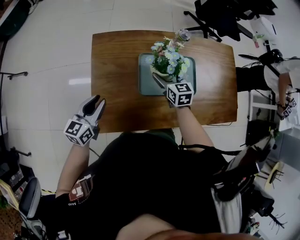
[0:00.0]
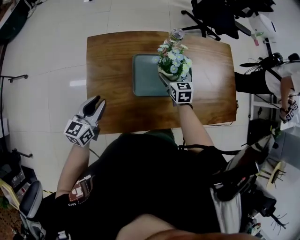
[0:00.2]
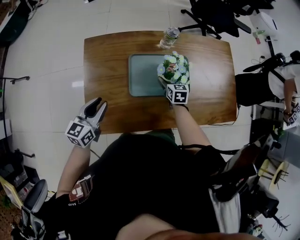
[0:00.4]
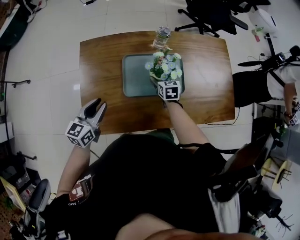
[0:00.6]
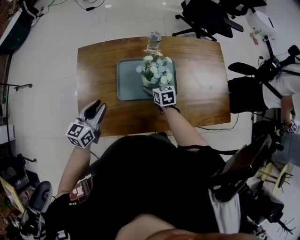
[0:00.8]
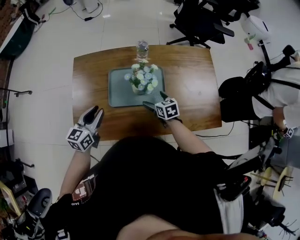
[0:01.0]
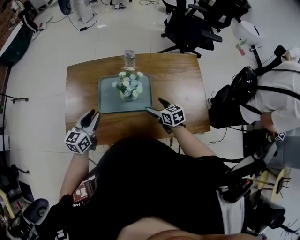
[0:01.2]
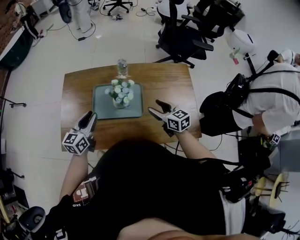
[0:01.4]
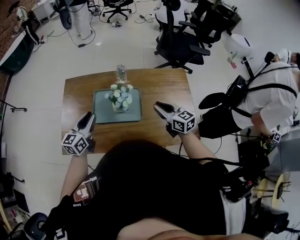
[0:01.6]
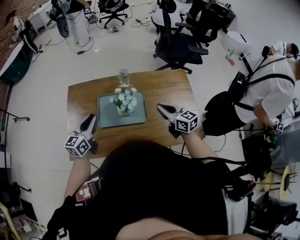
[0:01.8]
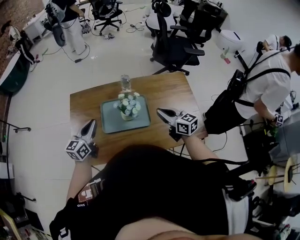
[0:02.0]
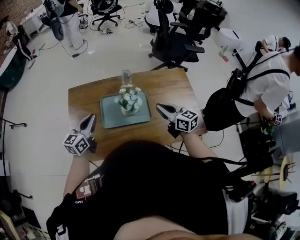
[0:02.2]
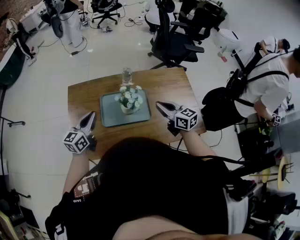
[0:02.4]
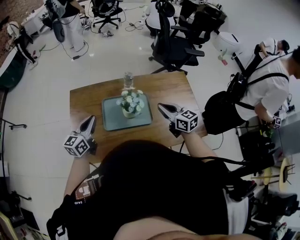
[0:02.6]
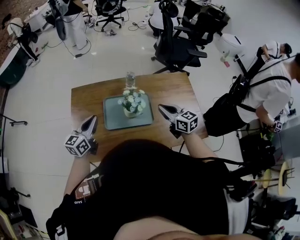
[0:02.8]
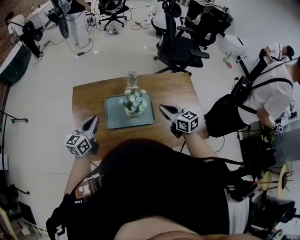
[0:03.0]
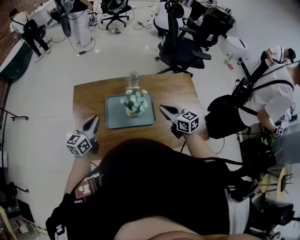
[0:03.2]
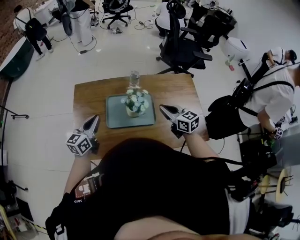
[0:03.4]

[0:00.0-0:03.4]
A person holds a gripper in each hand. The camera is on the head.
0.0 to 1.6 s: The right gripper goes about 30 cm to the right and upward, turns by approximately 30 degrees, and closes its fingers. The left gripper is displaced to the right by about 25 cm.
1.6 to 3.4 s: Both grippers move to the left, some 5 cm.

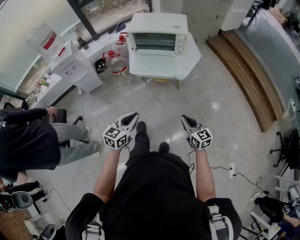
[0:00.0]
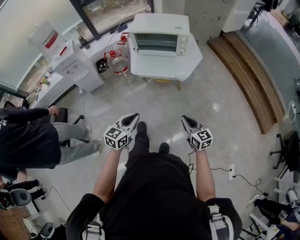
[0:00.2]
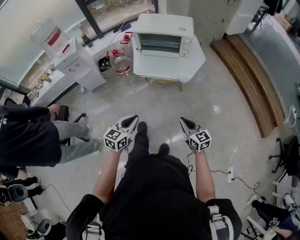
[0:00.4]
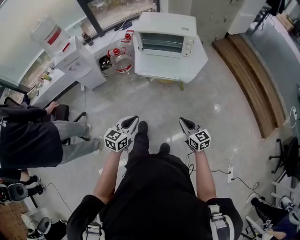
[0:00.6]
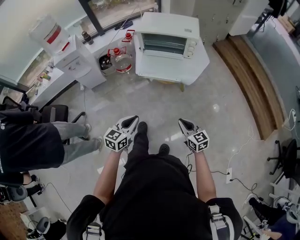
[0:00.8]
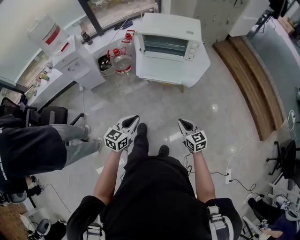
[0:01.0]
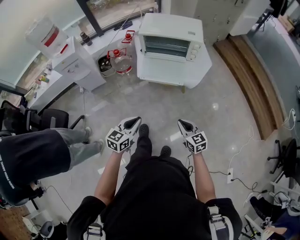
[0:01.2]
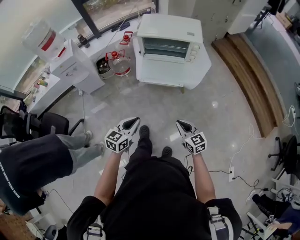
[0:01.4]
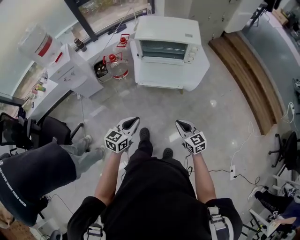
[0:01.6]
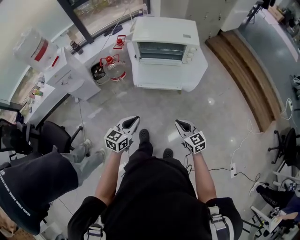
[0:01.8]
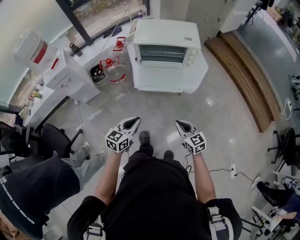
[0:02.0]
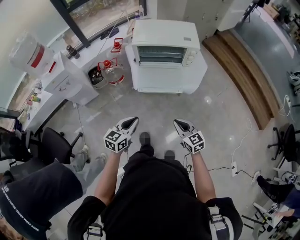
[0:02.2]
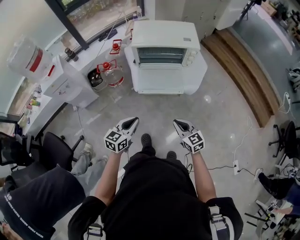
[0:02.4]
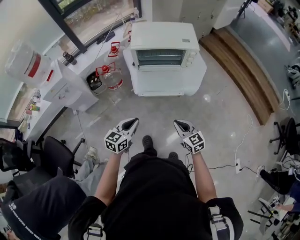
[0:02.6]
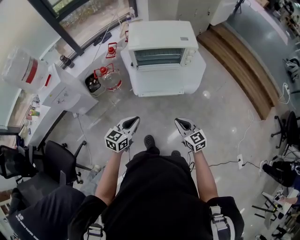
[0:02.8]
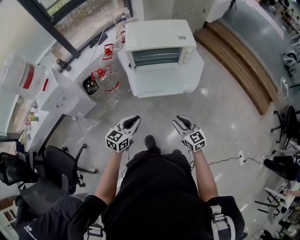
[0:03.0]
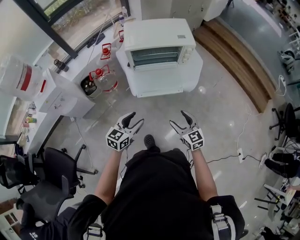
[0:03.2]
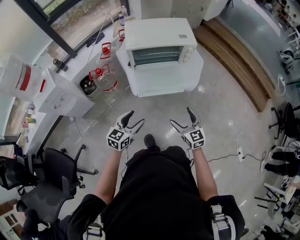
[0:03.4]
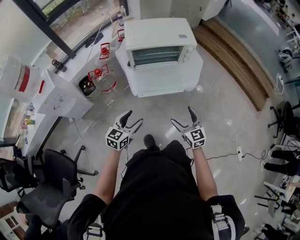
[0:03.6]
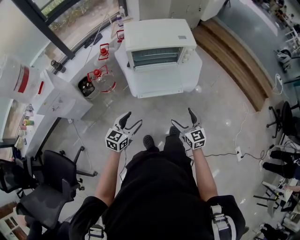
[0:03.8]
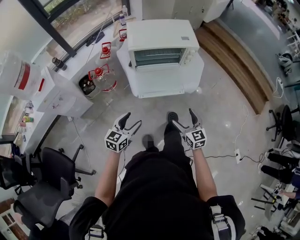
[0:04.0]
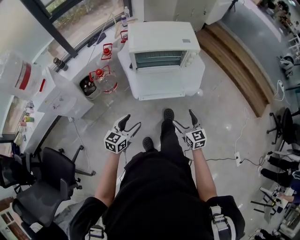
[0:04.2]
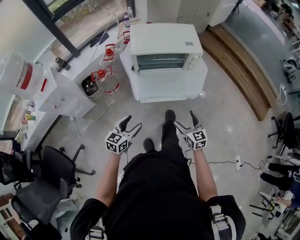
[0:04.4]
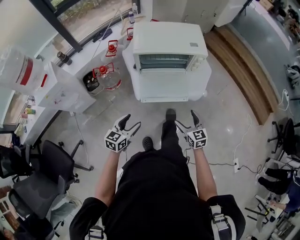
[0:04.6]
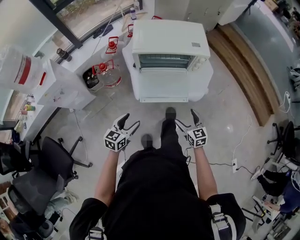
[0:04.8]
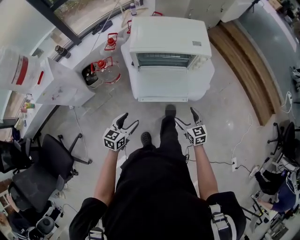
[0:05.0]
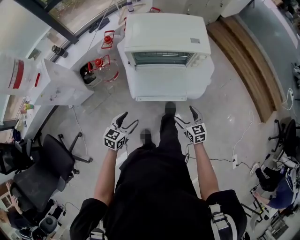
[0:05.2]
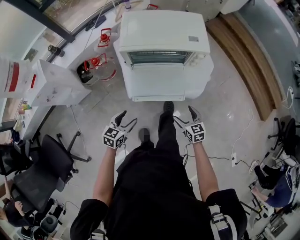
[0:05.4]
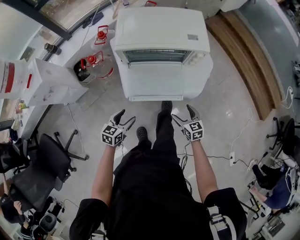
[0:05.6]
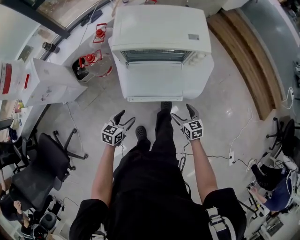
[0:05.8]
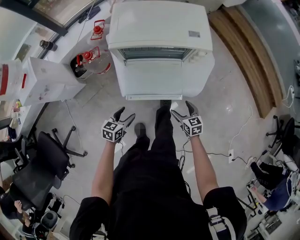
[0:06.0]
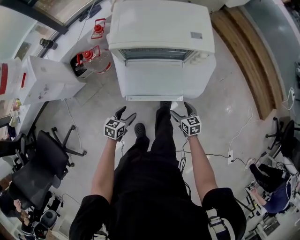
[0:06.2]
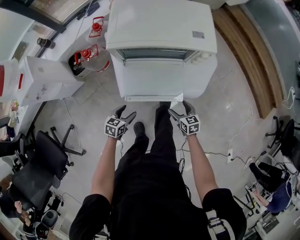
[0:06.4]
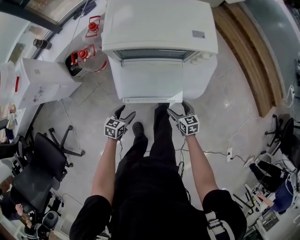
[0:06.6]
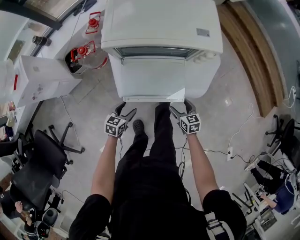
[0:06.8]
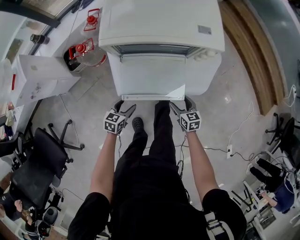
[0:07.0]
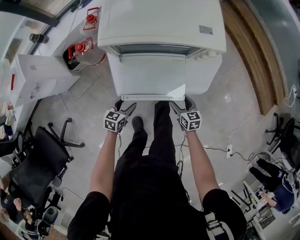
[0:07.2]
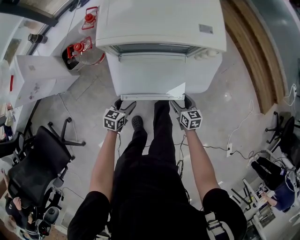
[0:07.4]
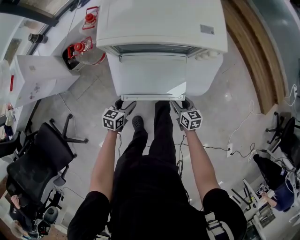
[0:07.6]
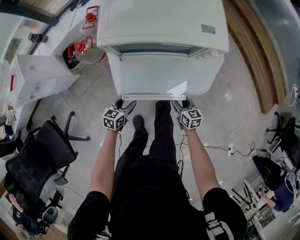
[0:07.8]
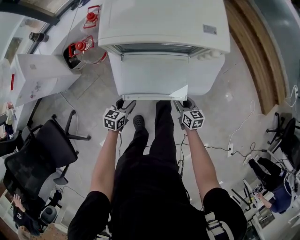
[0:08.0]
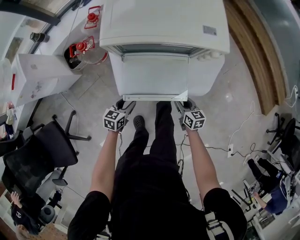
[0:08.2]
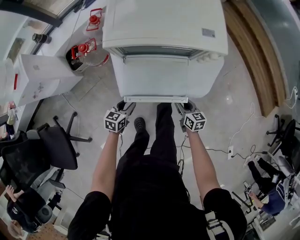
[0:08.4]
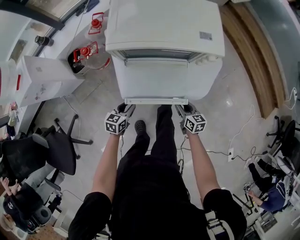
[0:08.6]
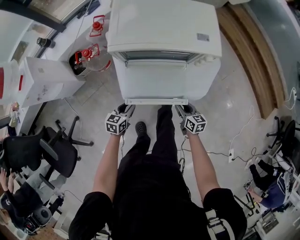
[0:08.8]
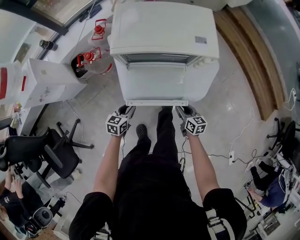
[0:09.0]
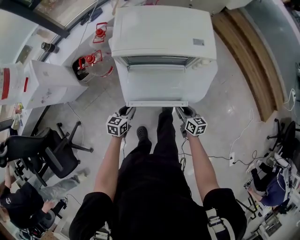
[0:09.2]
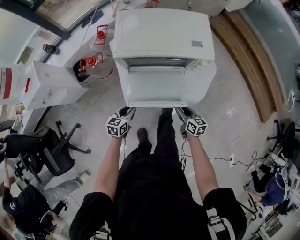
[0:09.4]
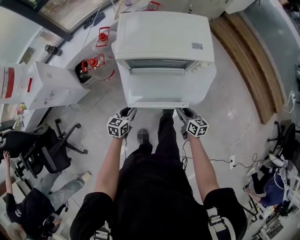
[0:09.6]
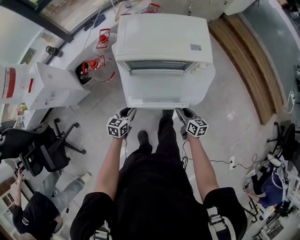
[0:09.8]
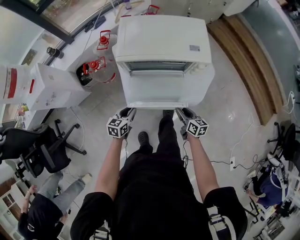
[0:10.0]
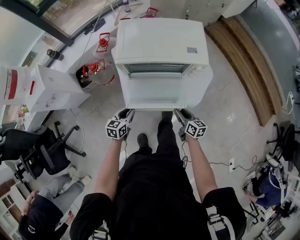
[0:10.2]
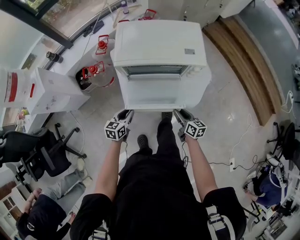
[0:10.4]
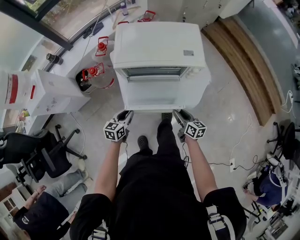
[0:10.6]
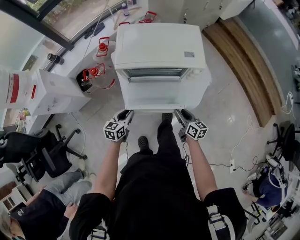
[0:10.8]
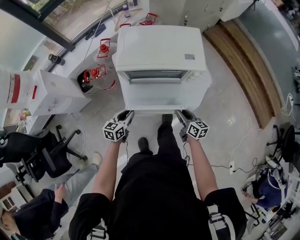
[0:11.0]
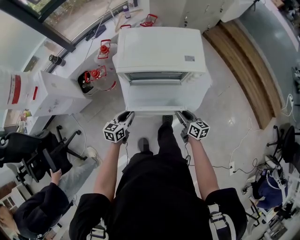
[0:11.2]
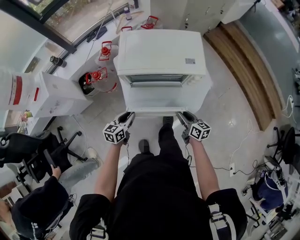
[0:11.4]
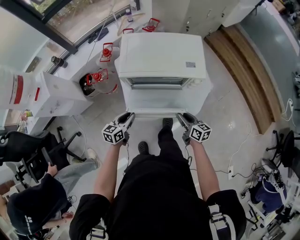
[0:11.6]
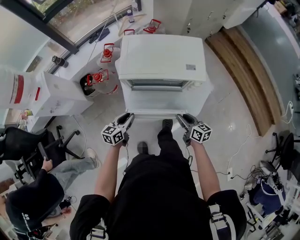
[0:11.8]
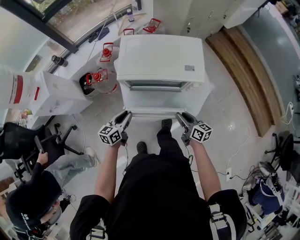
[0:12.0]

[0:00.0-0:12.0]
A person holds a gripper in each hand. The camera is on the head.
0.0 to 1.6 s: The left gripper goes approximately 15 cm forward and to the left; the right gripper moves to the left and forward, about 15 cm.
1.6 to 3.0 s: Both grippers move forward and to the left, some 15 cm.
3.0 to 4.4 s: The left gripper ends up about 5 cm from where it was, and opens. Meanwhile the right gripper shifts about 5 cm forward, and opens up.
4.4 to 6.0 s: Both grippers move downward and forward, approximately 25 cm.
6.0 to 7.6 s: The grippers both shift downward and forward by roughly 10 cm. The right gripper closes its fingers.
7.6 to 9.0 s: The grippers both shift upward by roughly 5 cm. The left gripper closes up.
9.0 to 10.4 s: Both grippers travel together upward, some 10 cm.
10.4 to 12.0 s: Both grippers travel together upward and forward, roughly 10 cm.

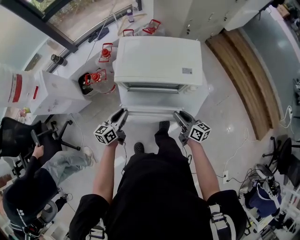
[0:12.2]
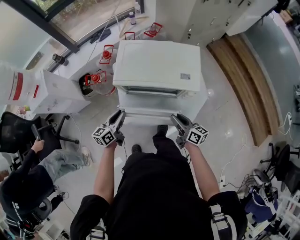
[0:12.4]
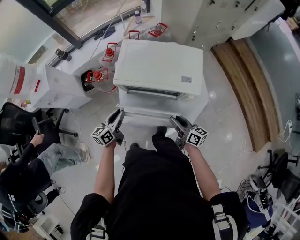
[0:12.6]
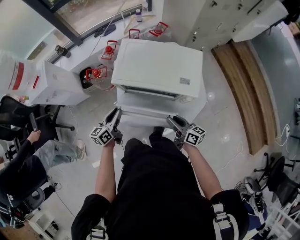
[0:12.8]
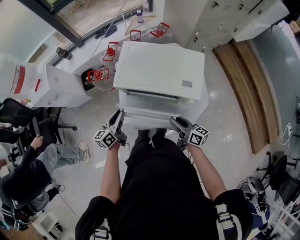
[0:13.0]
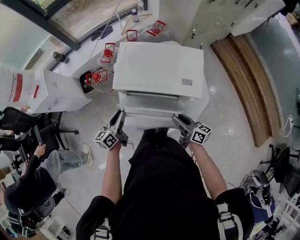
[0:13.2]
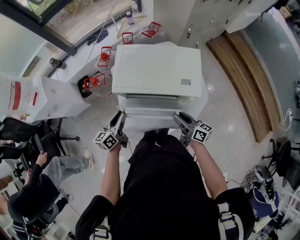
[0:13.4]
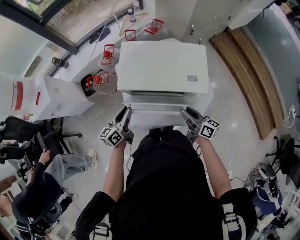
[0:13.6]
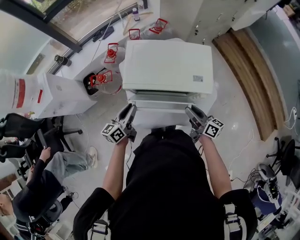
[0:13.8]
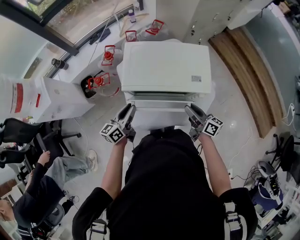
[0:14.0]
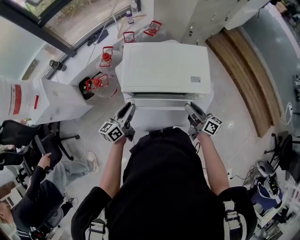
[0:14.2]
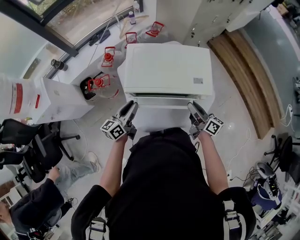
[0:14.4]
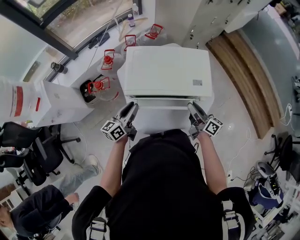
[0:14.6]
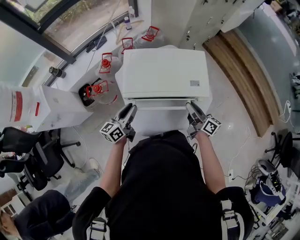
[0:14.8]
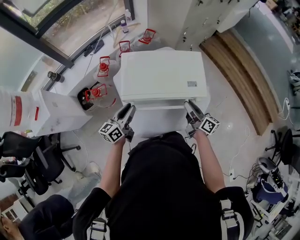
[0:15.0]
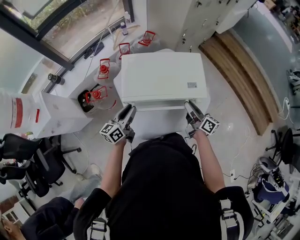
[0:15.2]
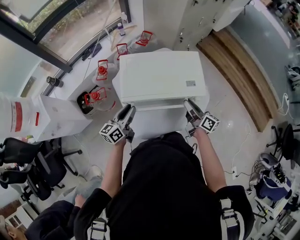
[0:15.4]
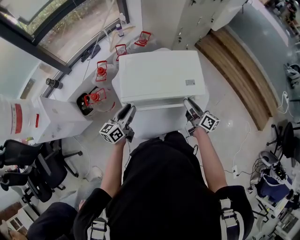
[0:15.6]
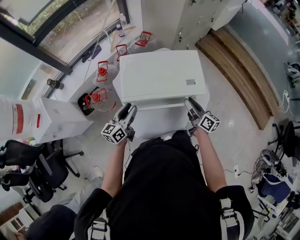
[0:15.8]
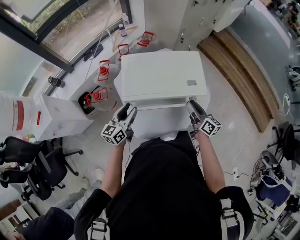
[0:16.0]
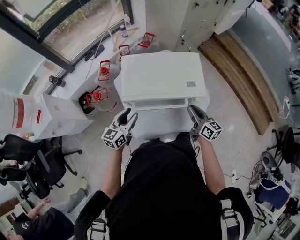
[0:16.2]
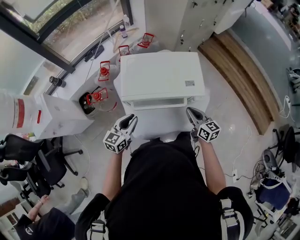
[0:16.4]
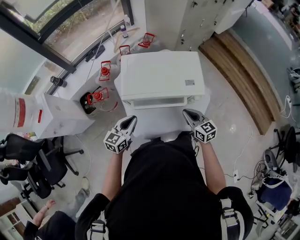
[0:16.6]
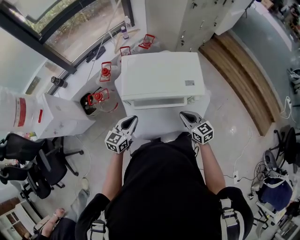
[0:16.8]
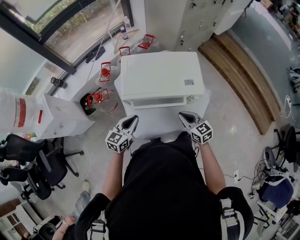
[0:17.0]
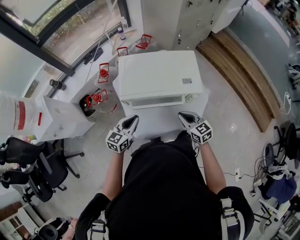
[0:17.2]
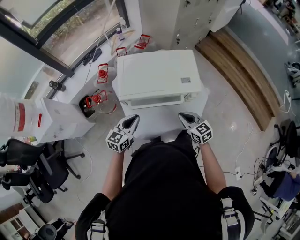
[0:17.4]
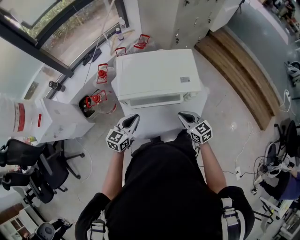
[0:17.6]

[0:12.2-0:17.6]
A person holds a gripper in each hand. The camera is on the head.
12.2 to 13.6 s: The grippers both shift forward by roughly 5 cm.
13.6 to 15.0 s: Both grippers move forward, about 5 cm.
15.0 to 16.2 s: The right gripper changes its angle by roughly 20 degrees, while the left gripper swivels about 20 degrees.
16.2 to 17.6 s: The right gripper moves backward, roughly 5 cm, and changes its angle by some 30 degrees, while the left gripper ends up about 5 cm from where it was, and closes.

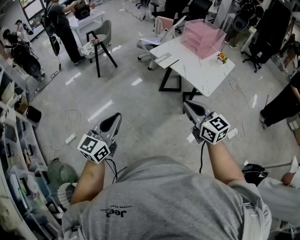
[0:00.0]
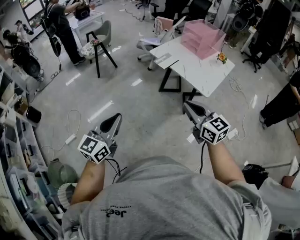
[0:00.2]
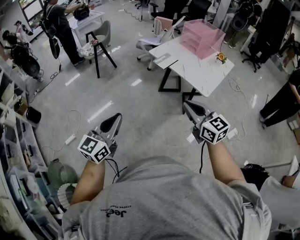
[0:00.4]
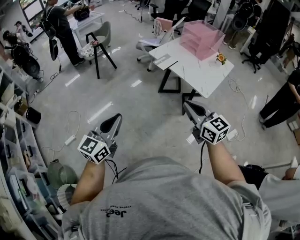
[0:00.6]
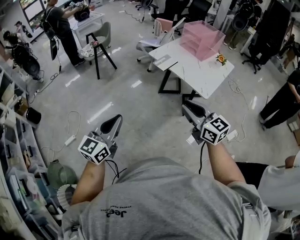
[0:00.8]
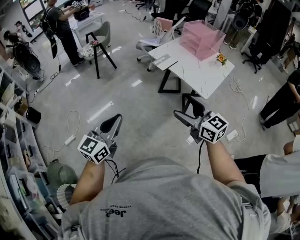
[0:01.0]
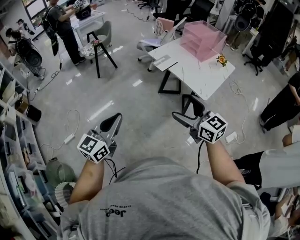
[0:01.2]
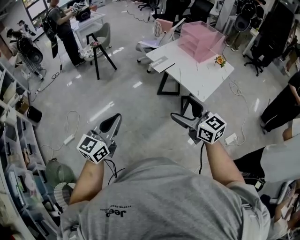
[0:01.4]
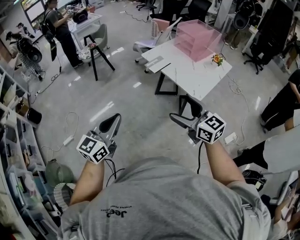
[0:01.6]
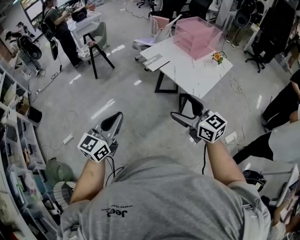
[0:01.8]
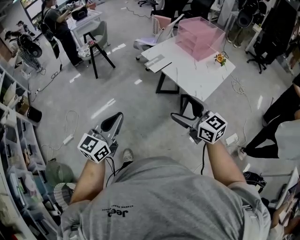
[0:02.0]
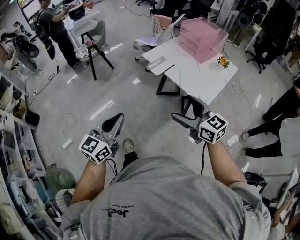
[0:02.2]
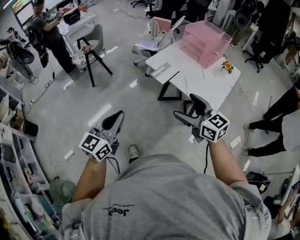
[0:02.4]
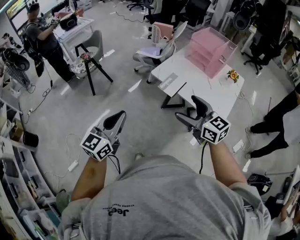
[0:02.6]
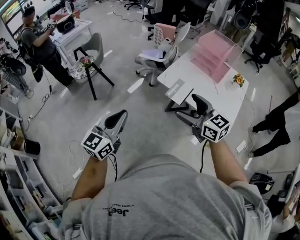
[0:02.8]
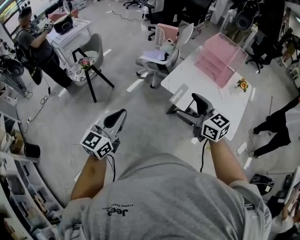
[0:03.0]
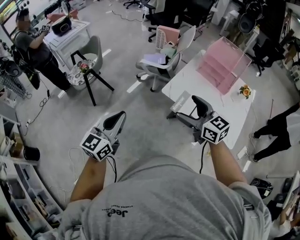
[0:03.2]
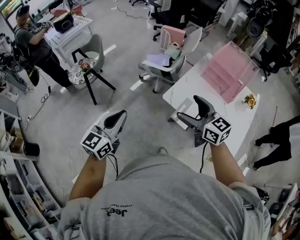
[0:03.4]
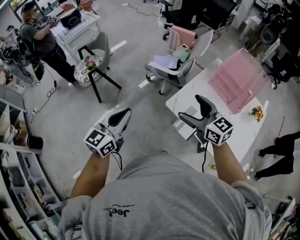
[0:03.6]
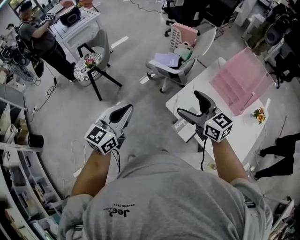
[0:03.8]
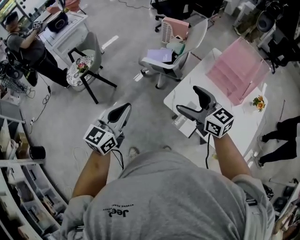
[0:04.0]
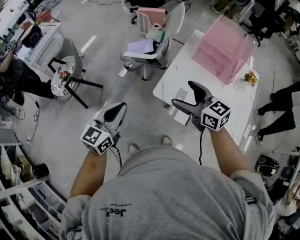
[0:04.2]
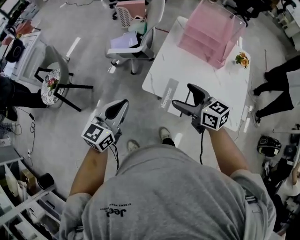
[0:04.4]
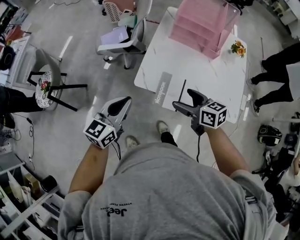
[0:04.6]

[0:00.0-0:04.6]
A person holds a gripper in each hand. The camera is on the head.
0.0 to 1.6 s: The grippers both shift to the right by approximately 10 cm. The right gripper opens its fingers.
1.6 to 3.0 s: Both grippers are carried forward and to the left, approximately 50 cm.
3.0 to 4.6 s: The left gripper shifts by roughly 35 cm, and rotates approximately 30 degrees. The right gripper changes place by about 30 cm, and swivels roughly 40 degrees.
